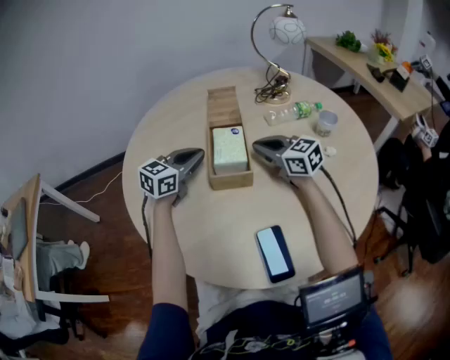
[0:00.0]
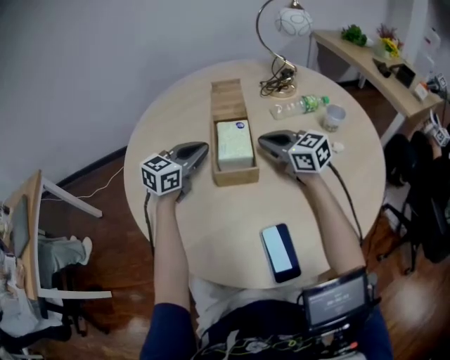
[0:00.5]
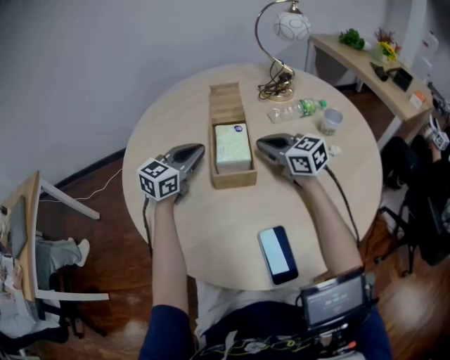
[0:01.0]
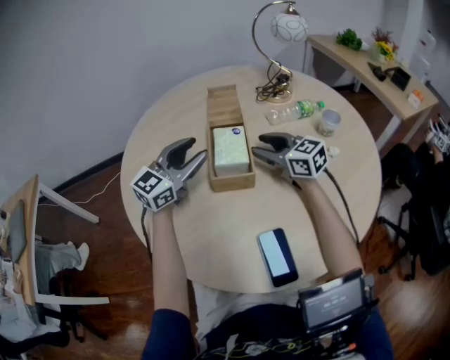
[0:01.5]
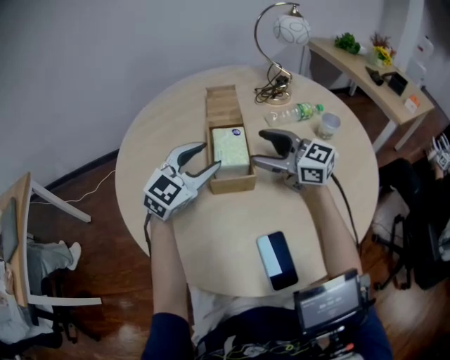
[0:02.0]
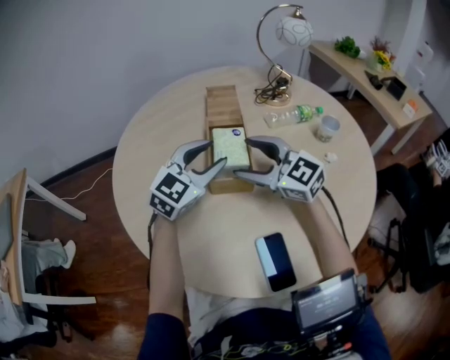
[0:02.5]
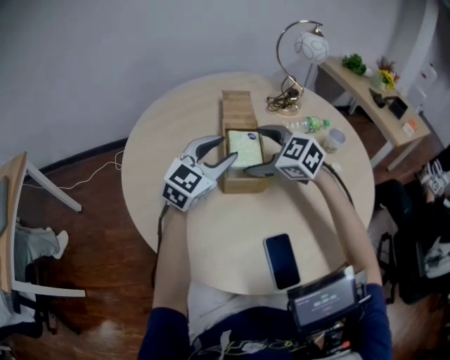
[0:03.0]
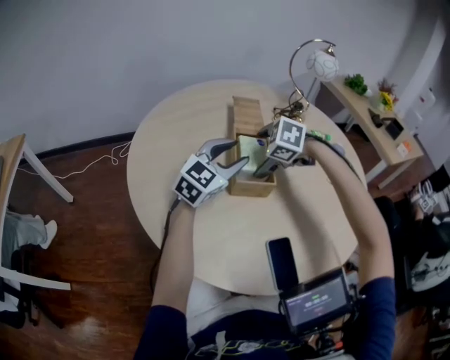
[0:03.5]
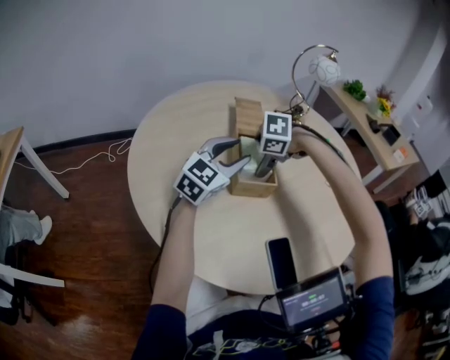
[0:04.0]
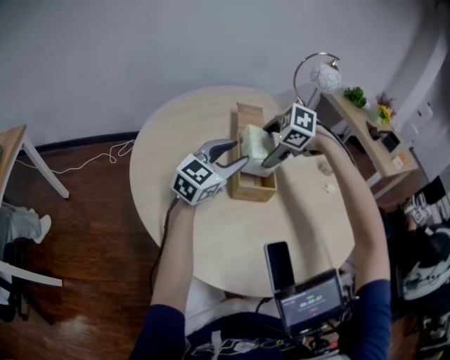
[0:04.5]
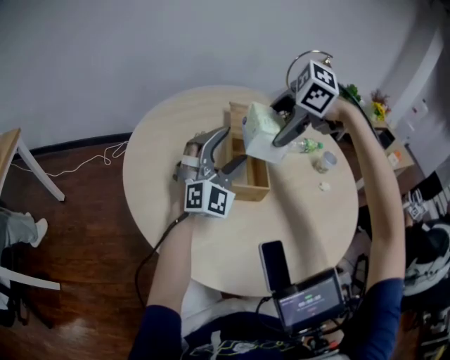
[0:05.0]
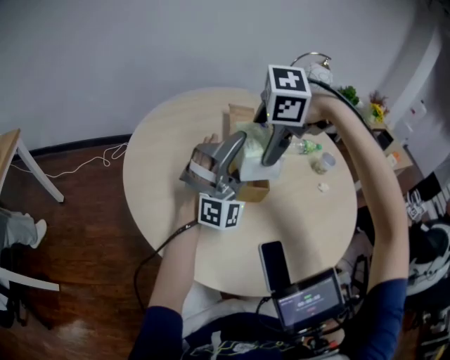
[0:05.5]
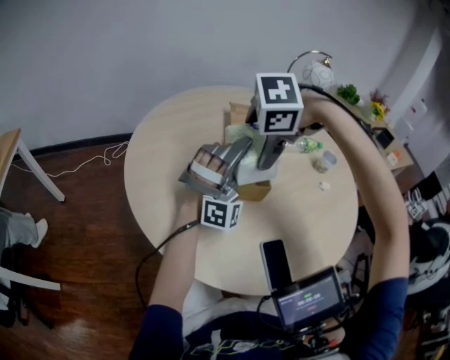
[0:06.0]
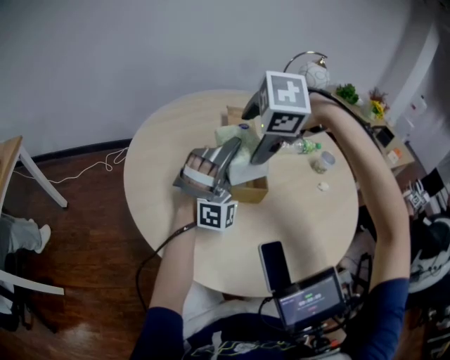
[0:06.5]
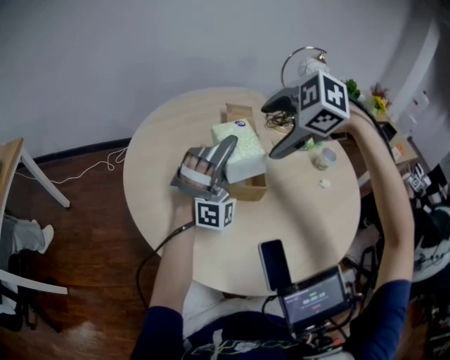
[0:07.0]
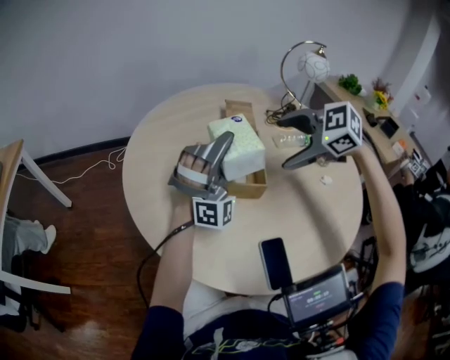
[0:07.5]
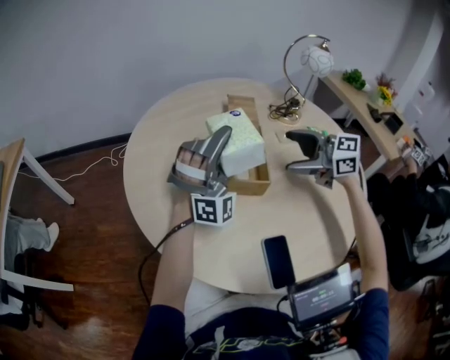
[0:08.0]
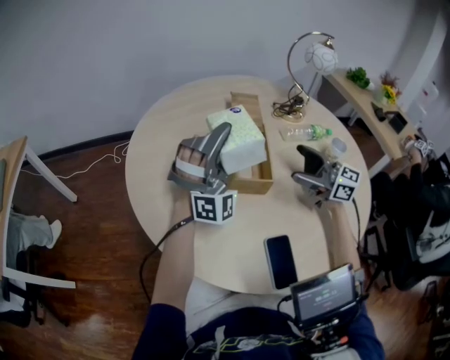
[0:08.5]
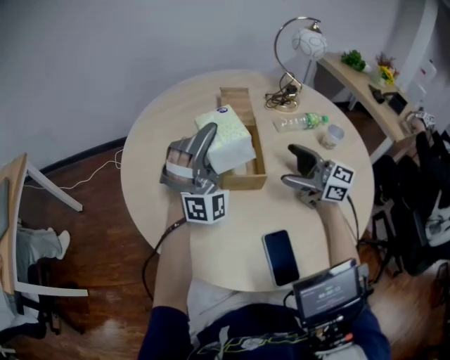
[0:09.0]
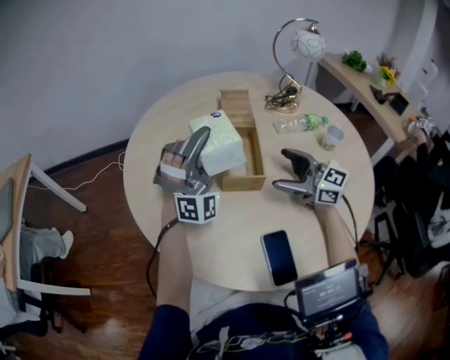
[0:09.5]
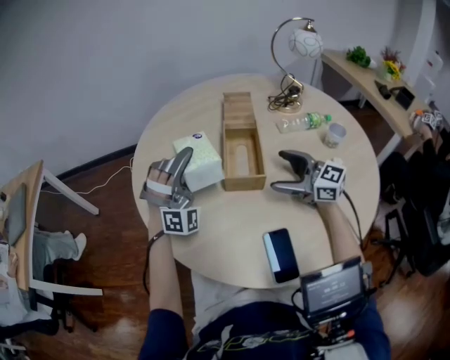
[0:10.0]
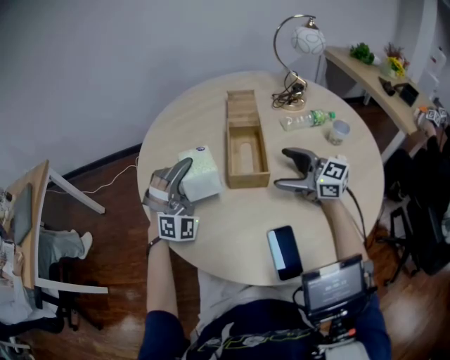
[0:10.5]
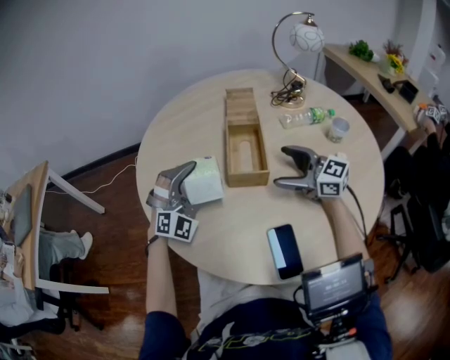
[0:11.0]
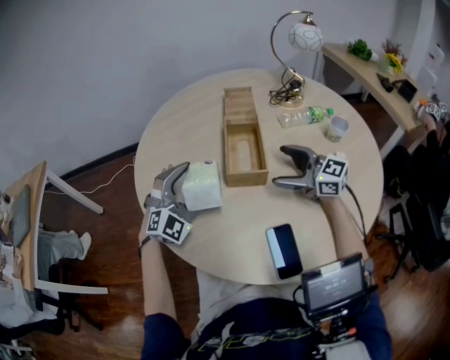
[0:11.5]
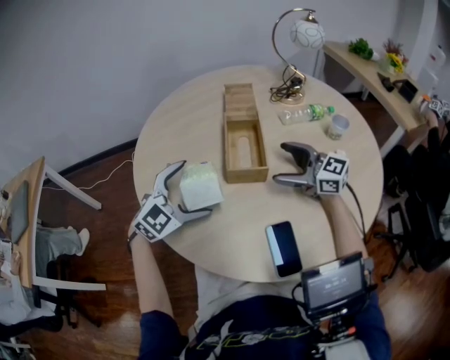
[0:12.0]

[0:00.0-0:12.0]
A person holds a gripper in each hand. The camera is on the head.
0:00.0 to 0:02.0: The left gripper ends up about 10 cm from where it was, and changes its angle by some 30 degrees. The right gripper shifts roughly 5 cm upward, and opens up.
0:02.0 to 0:04.0: The right gripper shifts approximately 10 cm downward, tilts its fingers roughly 80 degrees downward, and opens up.
0:04.0 to 0:06.0: The right gripper is displaced upward by about 15 cm. The left gripper moves about 5 cm, twists about 70 degrees clockwise, seen from behind, and opens.
0:06.0 to 0:08.0: The right gripper moves about 5 cm upward and comes back, and tilts its fingers approximately 70 degrees upward.
0:08.0 to 0:10.0: The right gripper shifts some 10 cm downward. Meanwhile the left gripper goes approximately 10 cm to the left and downward.
0:10.0 to 0:12.0: The left gripper travels backward by roughly 5 cm, and swivels some 60 degrees.

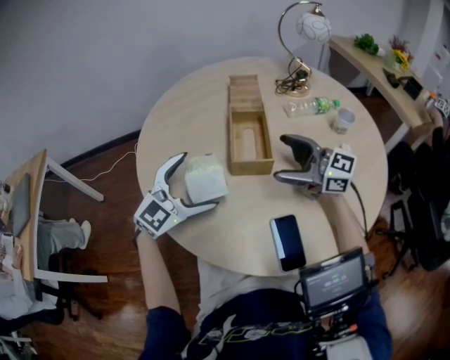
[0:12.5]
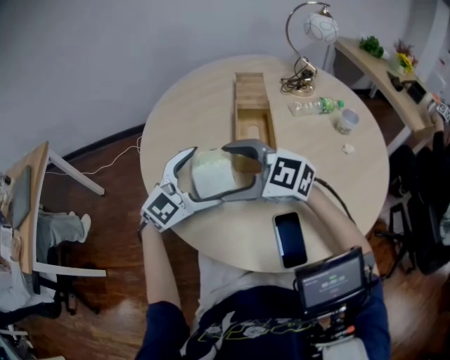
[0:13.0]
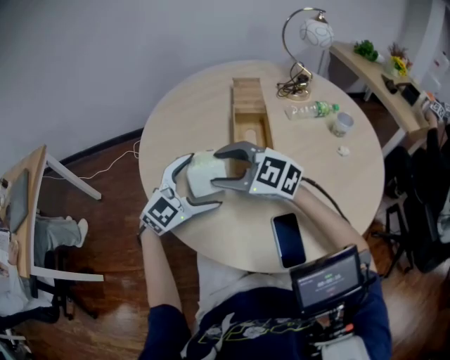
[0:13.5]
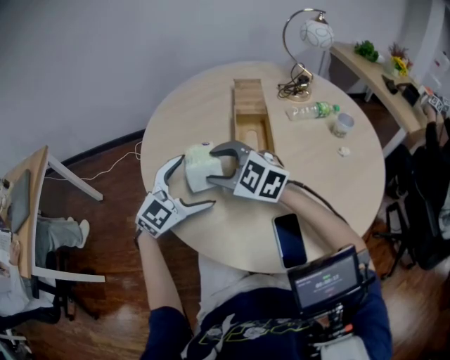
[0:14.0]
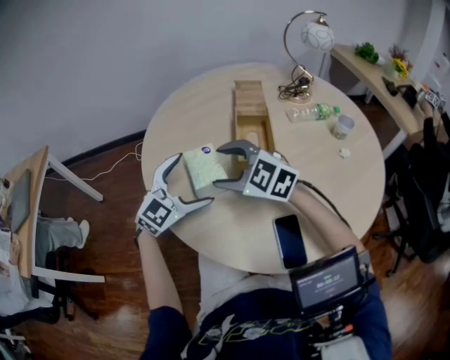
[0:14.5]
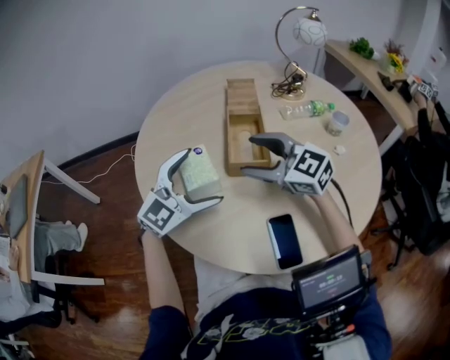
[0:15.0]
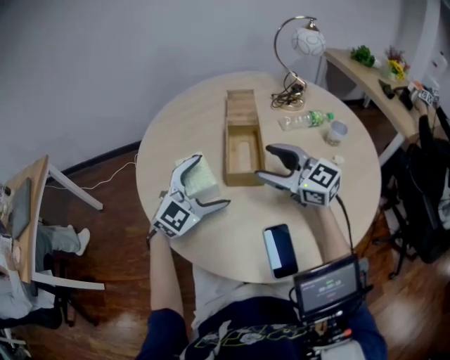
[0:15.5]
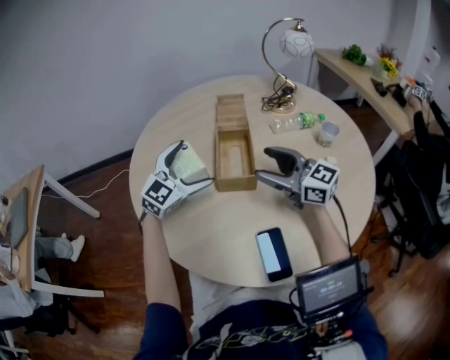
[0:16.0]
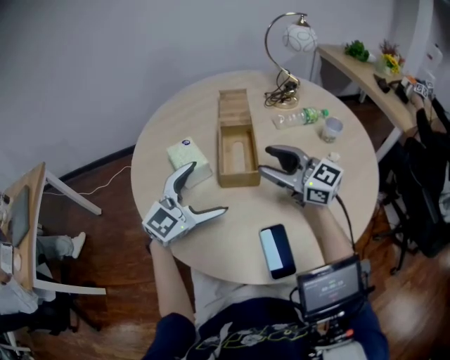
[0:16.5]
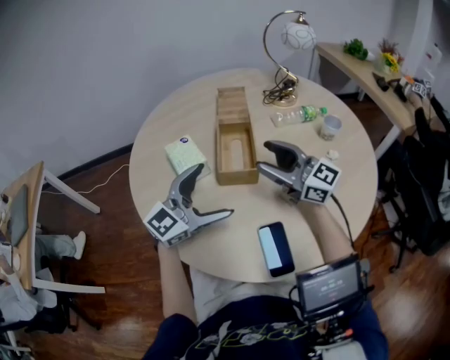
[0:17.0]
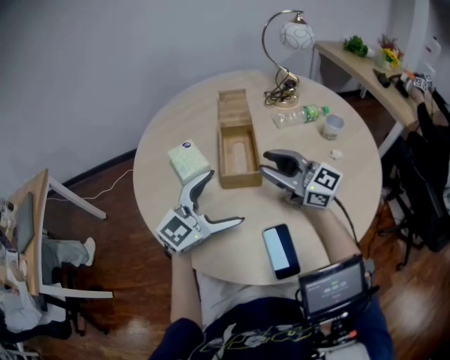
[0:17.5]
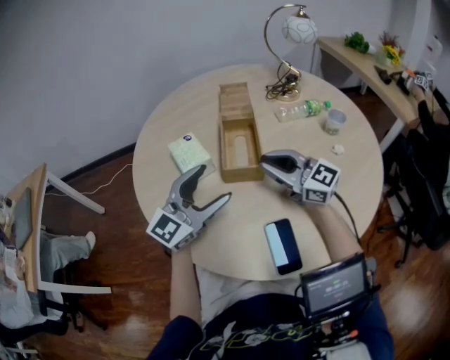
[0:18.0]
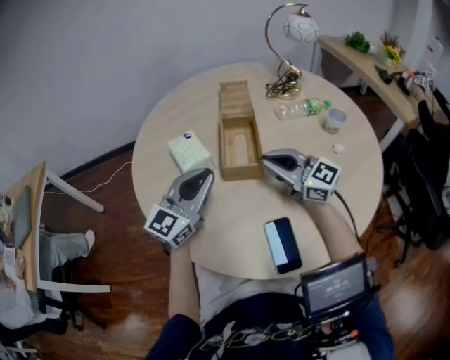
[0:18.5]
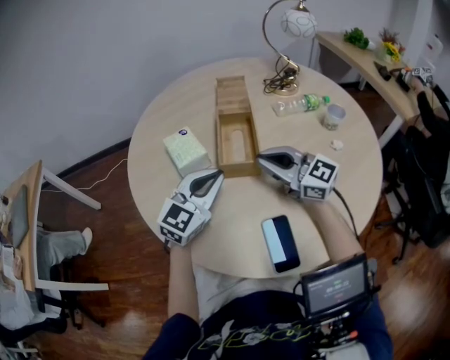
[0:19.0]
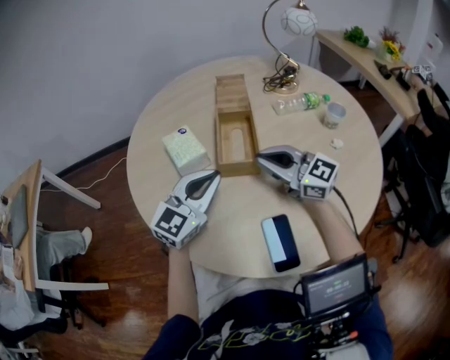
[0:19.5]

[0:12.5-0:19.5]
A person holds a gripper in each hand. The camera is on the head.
0:12.5 to 0:14.5: The right gripper ends up about 20 cm from where it was, and swivels some 40 degrees.
0:14.5 to 0:16.0: The left gripper heads forward and to the right, covering about 10 cm, while the right gripper goes some 20 cm to the right, and swivels some 40 degrees.
0:16.0 to 0:17.5: The left gripper is displaced backward and to the right by about 15 cm.
0:17.5 to 0:19.5: The left gripper closes.

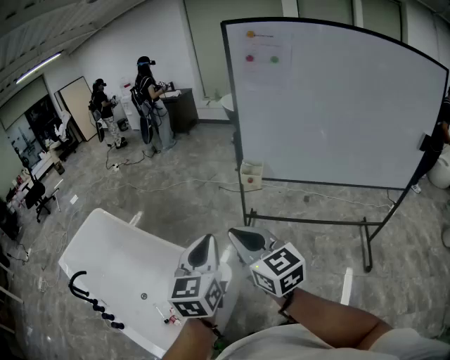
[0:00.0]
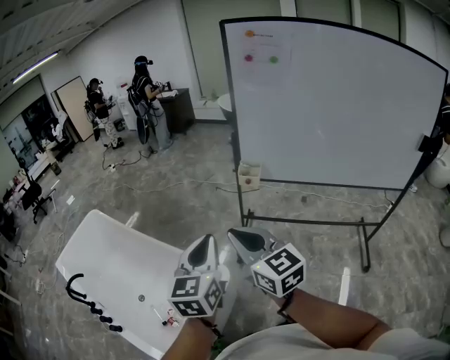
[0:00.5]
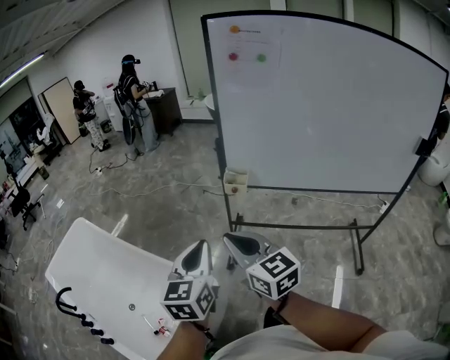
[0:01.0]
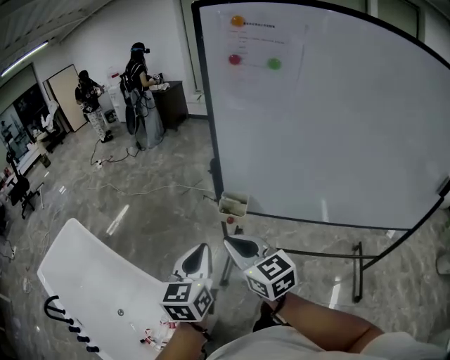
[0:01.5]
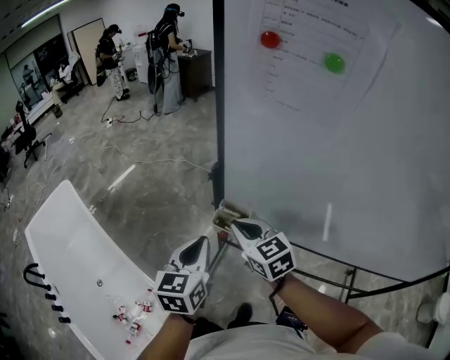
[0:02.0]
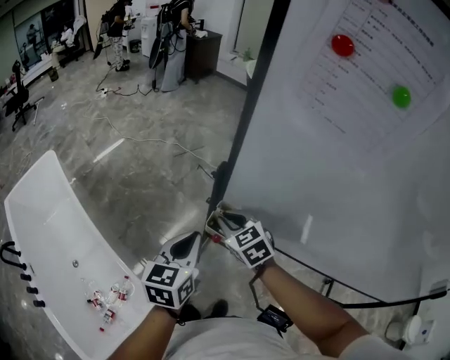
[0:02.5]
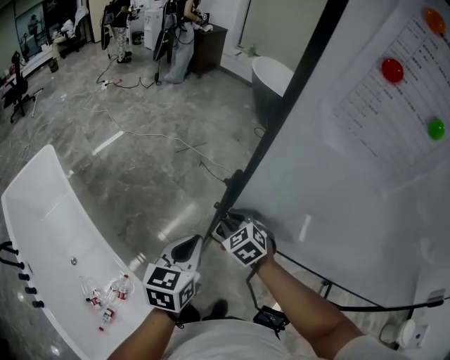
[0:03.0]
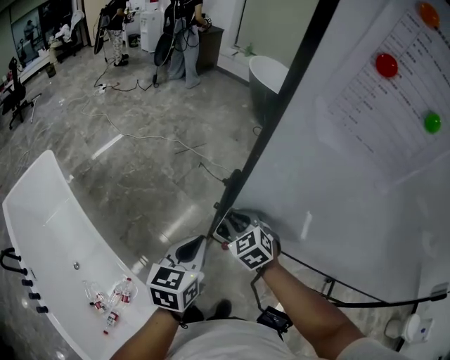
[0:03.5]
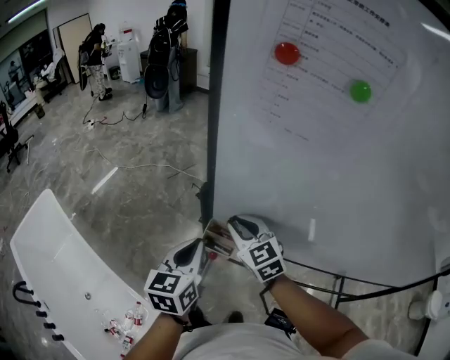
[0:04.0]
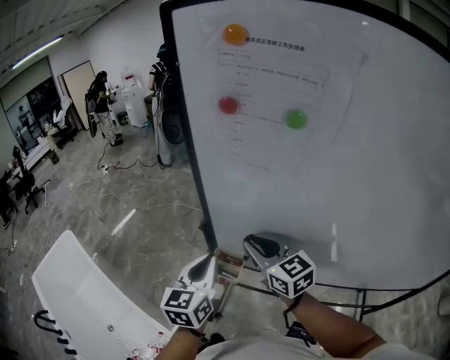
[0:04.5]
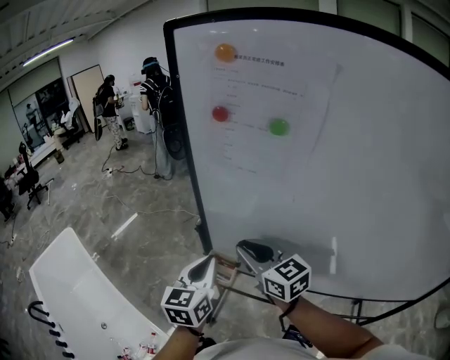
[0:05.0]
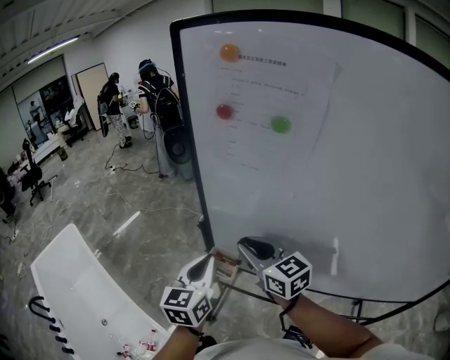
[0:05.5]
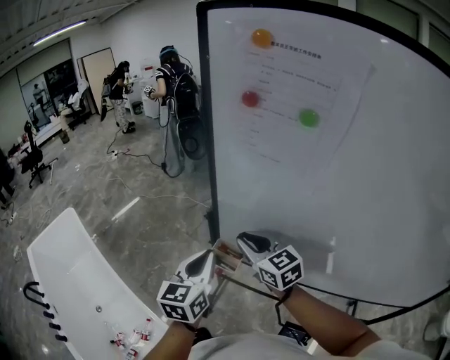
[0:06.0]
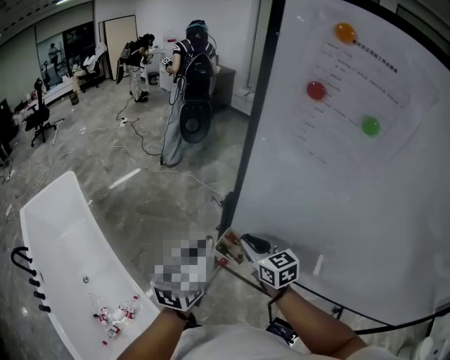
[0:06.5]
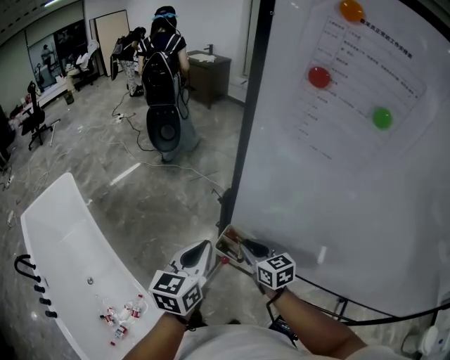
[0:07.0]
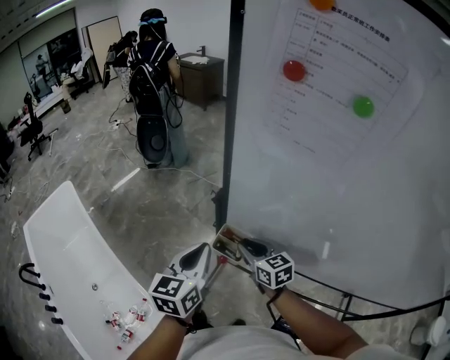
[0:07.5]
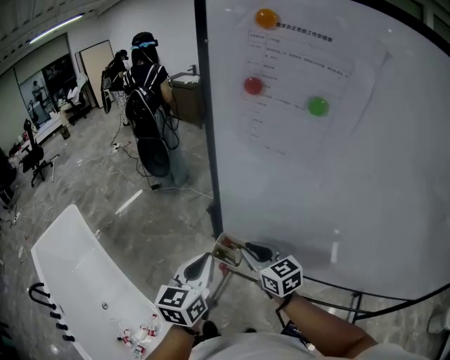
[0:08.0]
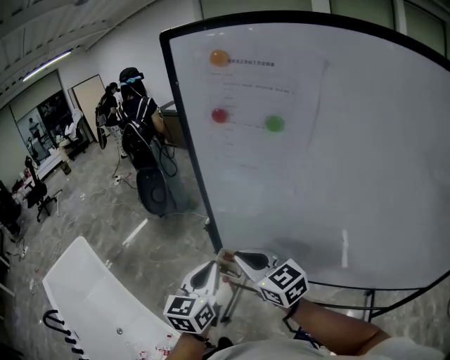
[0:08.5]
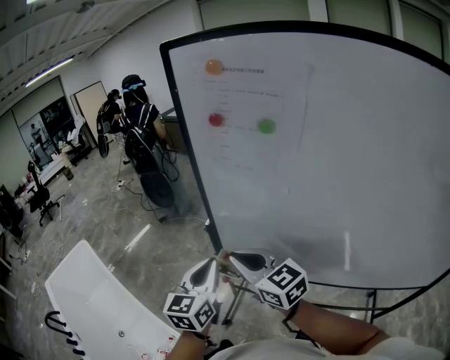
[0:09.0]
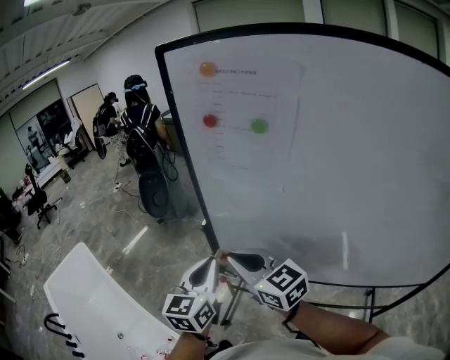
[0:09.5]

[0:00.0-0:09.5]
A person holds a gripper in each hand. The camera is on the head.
0:00.0 to 0:02.0: The pair of grippers is taken forward and to the right, approximately 50 cm. The right gripper turns by roughly 20 degrees.
0:02.0 to 0:04.0: Both grippers travel together forward, approximately 10 cm. The right gripper goes downward and returns, approximately 15 cm each way.
0:04.0 to 0:05.5: The left gripper goes approximately 10 cm upward and to the right. The right gripper shifts about 15 cm upward and backward, and swivels roughly 20 degrees.
0:05.5 to 0:07.5: The right gripper heads downward, covering roughly 20 cm. The left gripper moves downward and to the left, some 10 cm.
0:07.5 to 0:09.5: The left gripper heads upward, backward and to the right, covering some 15 cm; the right gripper travels upward and backward by roughly 25 cm, and swivels about 20 degrees.
